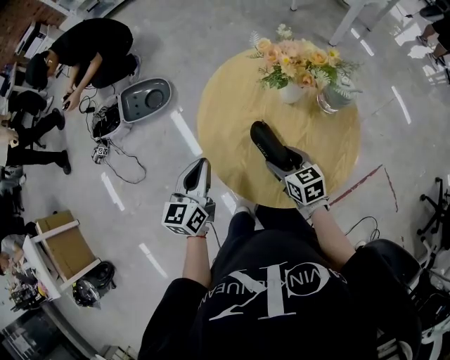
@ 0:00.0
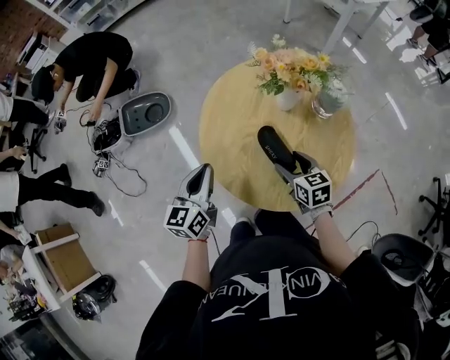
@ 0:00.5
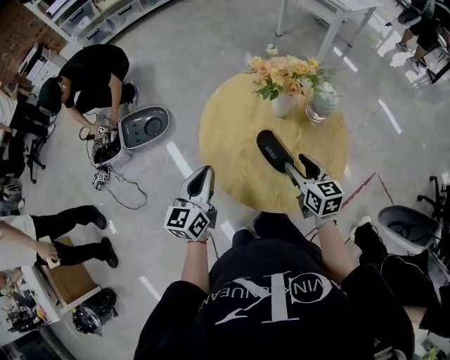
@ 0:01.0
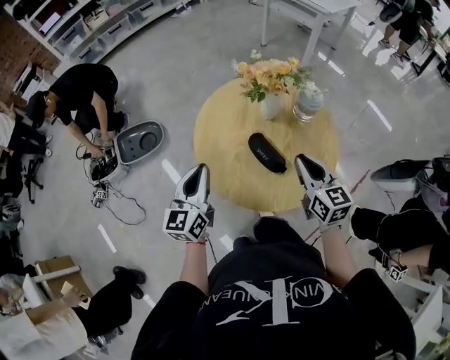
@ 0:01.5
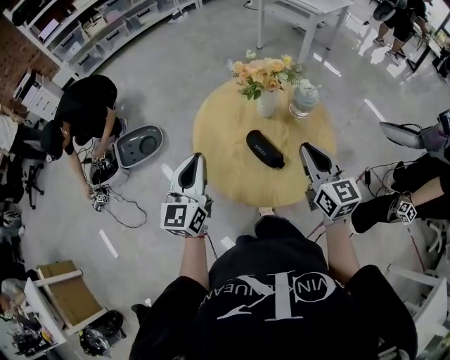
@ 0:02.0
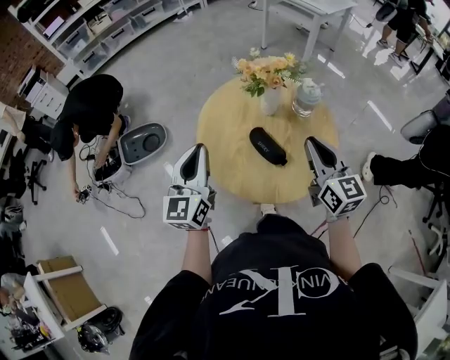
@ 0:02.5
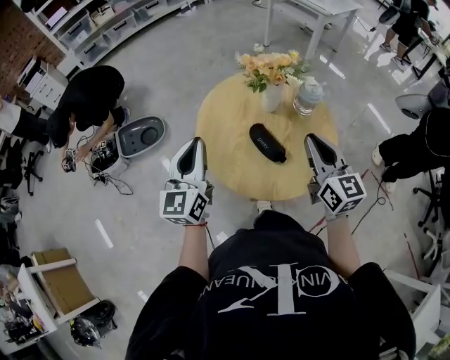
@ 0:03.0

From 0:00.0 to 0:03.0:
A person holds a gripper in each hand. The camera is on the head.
From 0:00.0 to 0:01.5: The right gripper goes roughly 20 cm upward and to the right, turns by roughly 30 degrees, and closes up. The left gripper moves upward, approximately 5 cm.
From 0:01.5 to 0:03.0: The two grippers go about 5 cm upward.

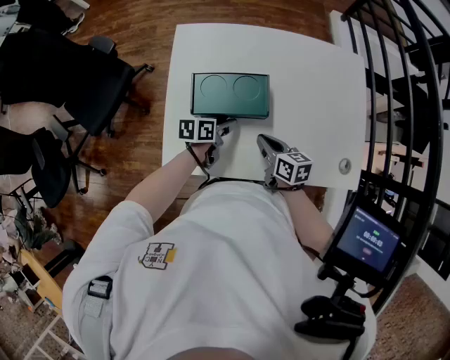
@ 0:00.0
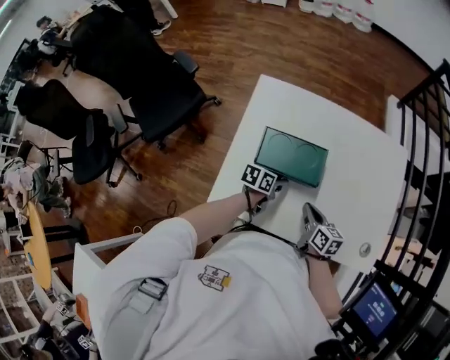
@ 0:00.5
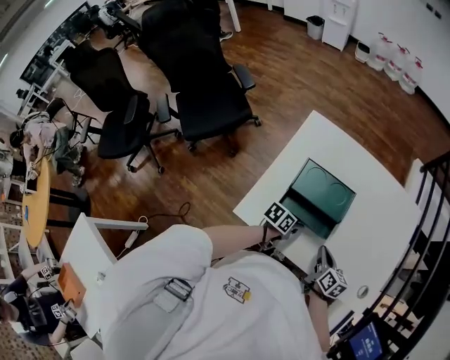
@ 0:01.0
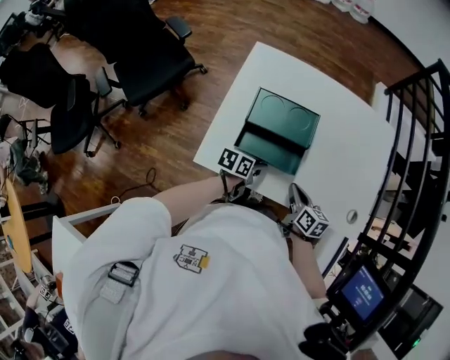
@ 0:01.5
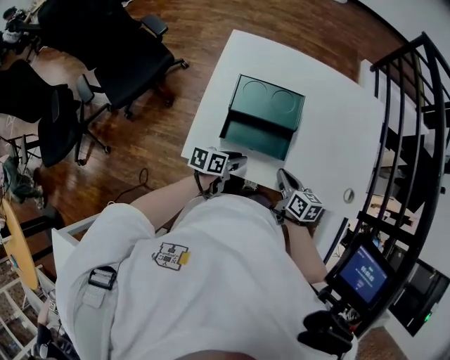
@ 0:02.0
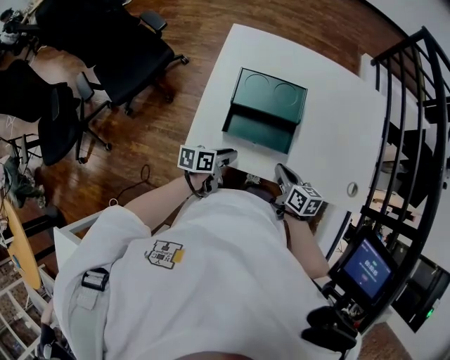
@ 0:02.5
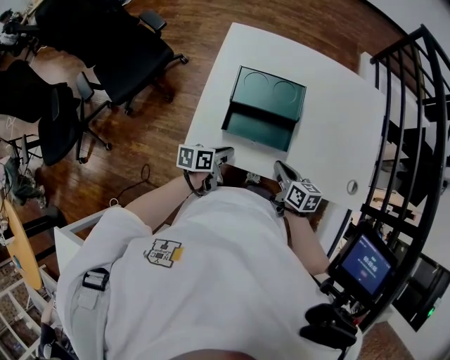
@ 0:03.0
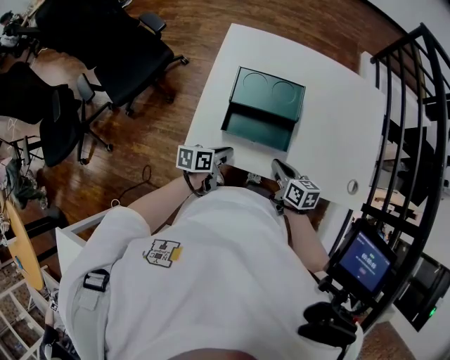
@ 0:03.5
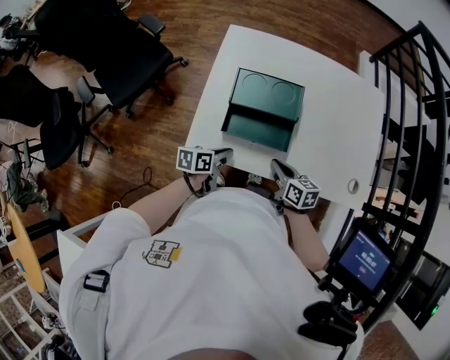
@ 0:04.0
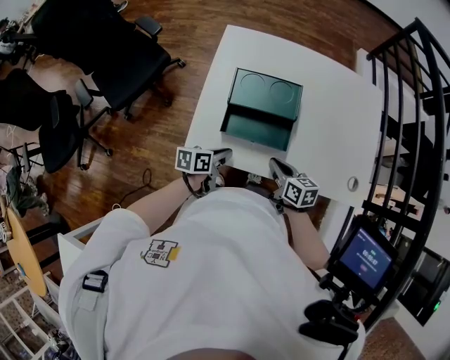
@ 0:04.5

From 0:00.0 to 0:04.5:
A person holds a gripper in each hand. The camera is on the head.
From 0:00.0 to 0:02.0: The right gripper shifts approximately 5 cm backward. The left gripper moves backward, some 10 cm.
From 0:02.0 to 0:04.5: The left gripper closes its fingers.

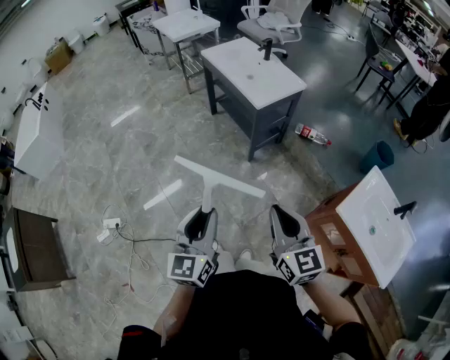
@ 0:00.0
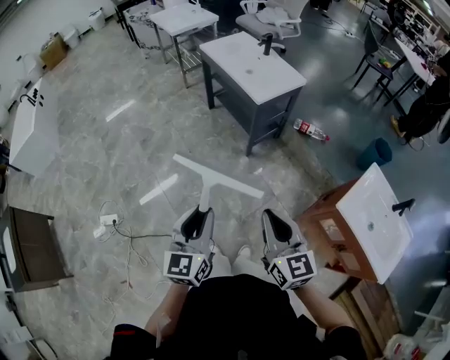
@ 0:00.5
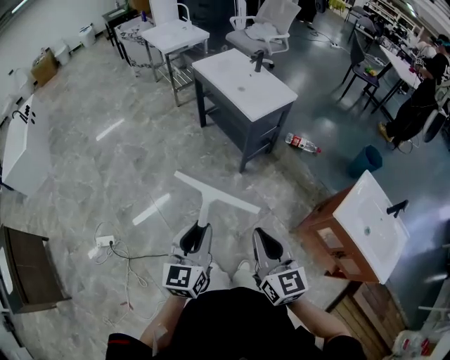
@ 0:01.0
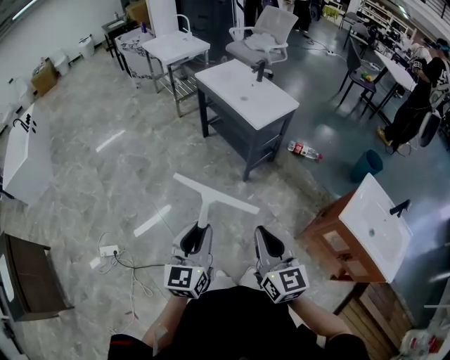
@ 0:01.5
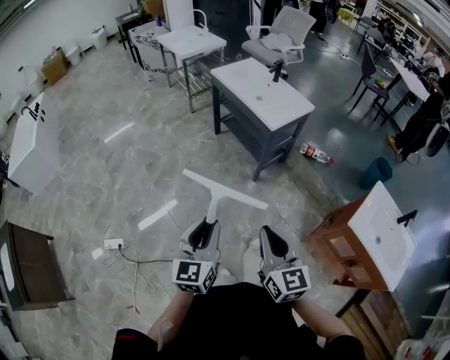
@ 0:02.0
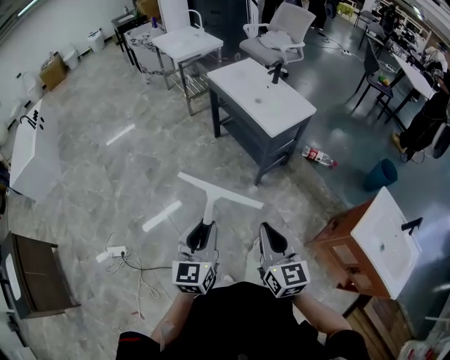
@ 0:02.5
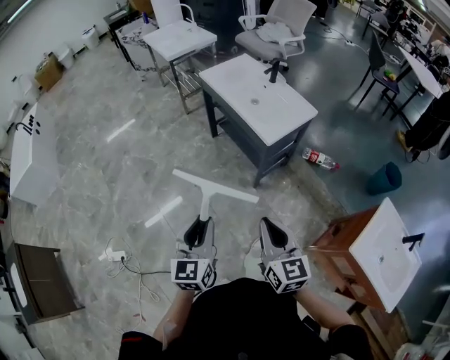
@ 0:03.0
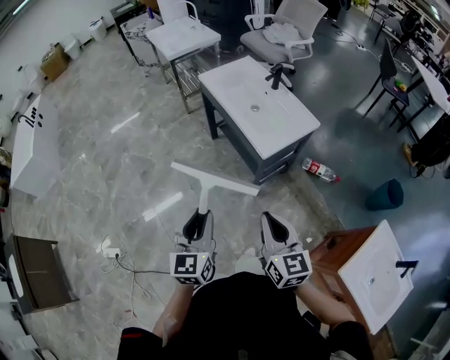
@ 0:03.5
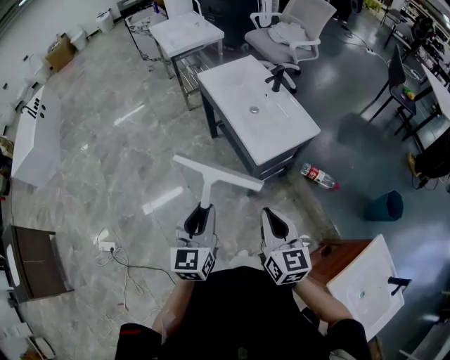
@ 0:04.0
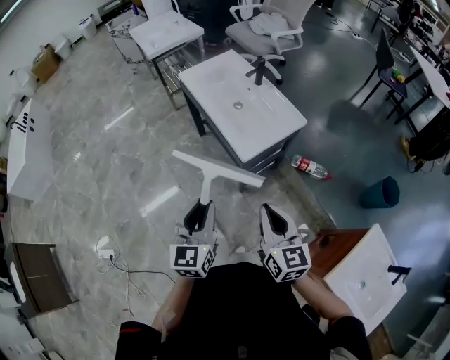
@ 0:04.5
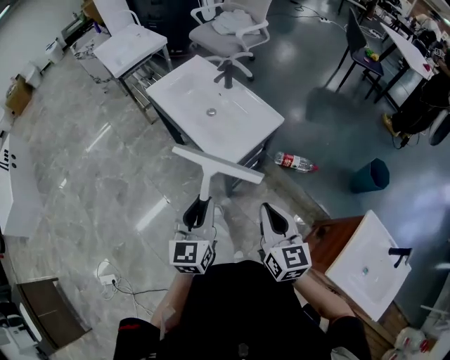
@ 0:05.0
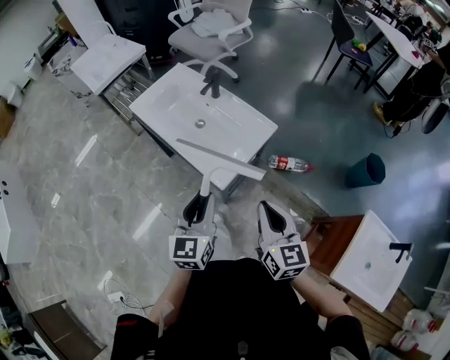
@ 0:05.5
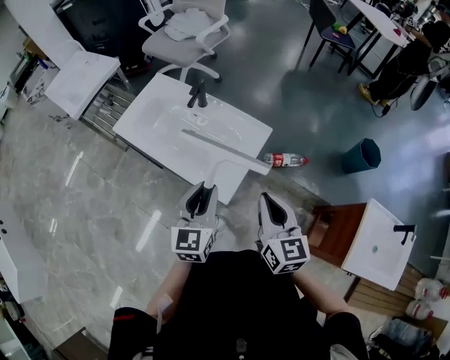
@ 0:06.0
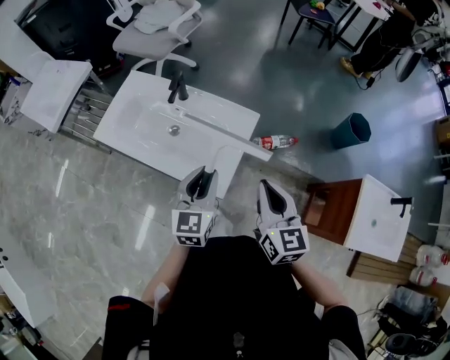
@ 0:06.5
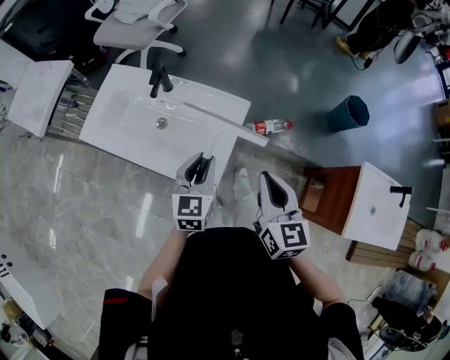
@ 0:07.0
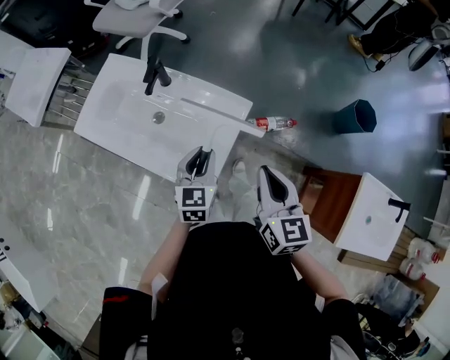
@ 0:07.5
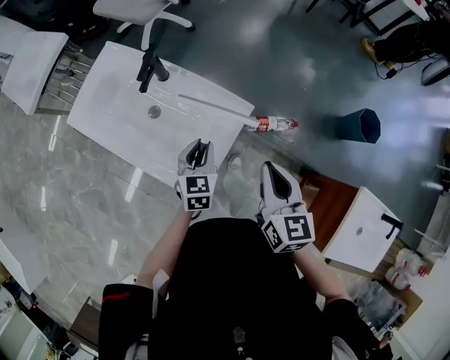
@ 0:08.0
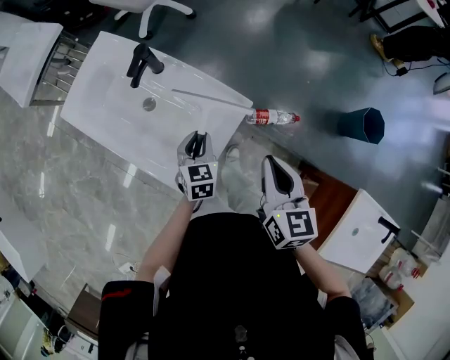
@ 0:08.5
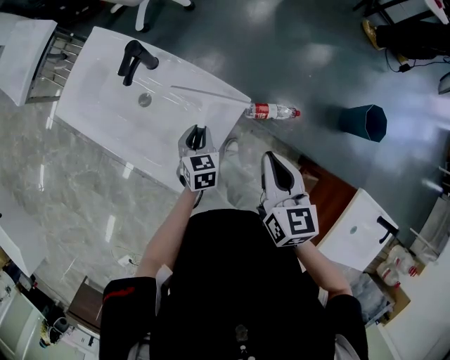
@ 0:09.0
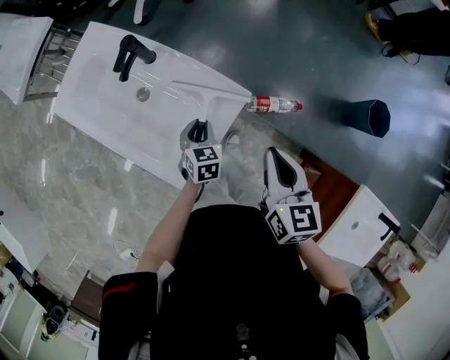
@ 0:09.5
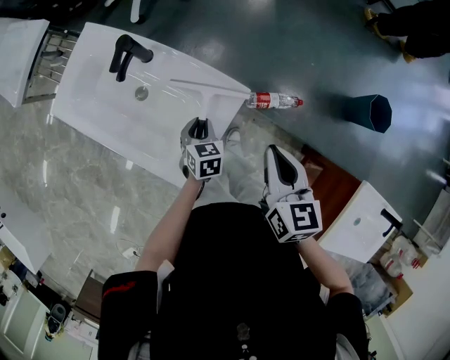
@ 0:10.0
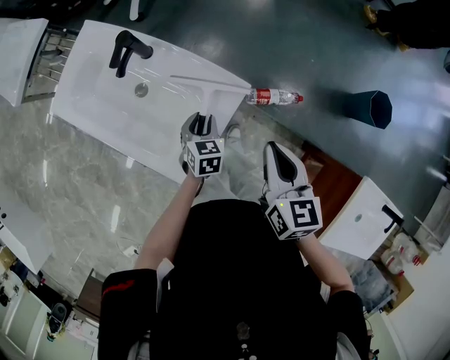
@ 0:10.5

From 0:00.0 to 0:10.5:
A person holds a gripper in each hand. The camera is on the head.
From 0:00.0 to 0:02.0: Both grippers travel together to the left, some 15 cm.
From 0:02.0 to 0:04.0: Both grippers move forward and to the right, approximately 35 cm.
From 0:04.0 to 0:06.5: The right gripper shifts by some 25 cm, and changes its angle by some 40 degrees; the left gripper moves roughly 40 cm, and changes its angle by roughly 40 degrees.
From 0:06.5 to 0:08.5: The left gripper travels downward and forward by approximately 25 cm, and rotates roughly 30 degrees, while the right gripper travels forward, to the right and downward by some 20 cm.
From 0:08.5 to 0:10.5: The left gripper shifts roughly 5 cm downward.

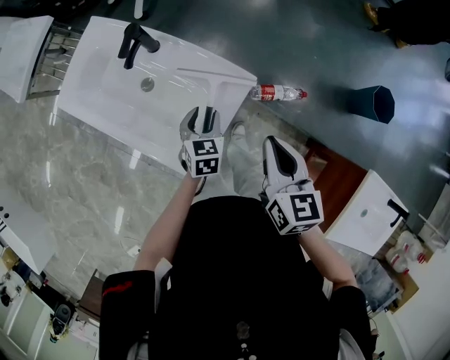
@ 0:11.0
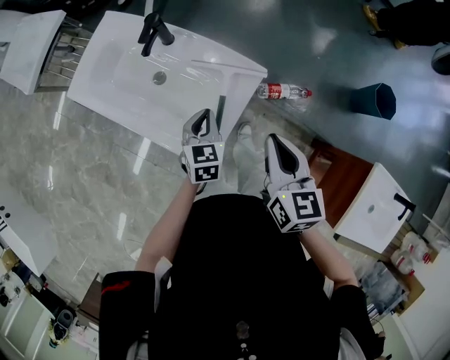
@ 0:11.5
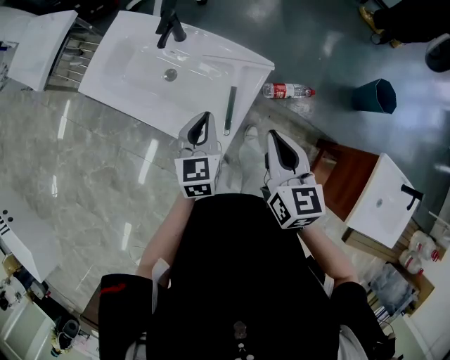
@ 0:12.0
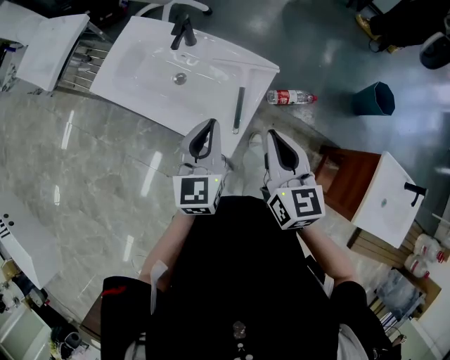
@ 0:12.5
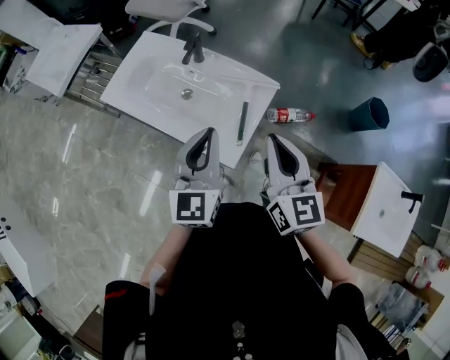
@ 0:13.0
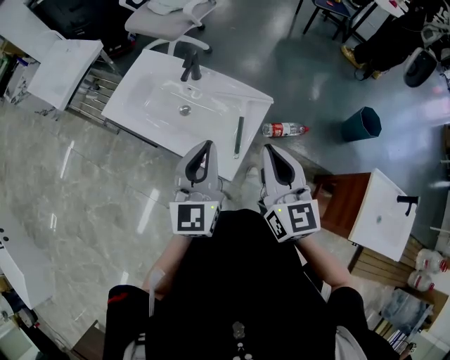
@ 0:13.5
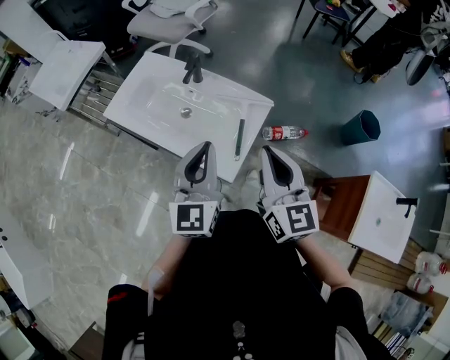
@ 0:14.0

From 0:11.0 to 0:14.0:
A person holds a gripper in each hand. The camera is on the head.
From 0:11.0 to 0:12.5: The left gripper travels upward and backward by roughly 25 cm, points its fingers some 30 degrees further upward, and closes; the right gripper travels to the left, backward and upward by some 15 cm.
From 0:12.5 to 0:14.0: The grippers both shift upward by roughly 10 cm.

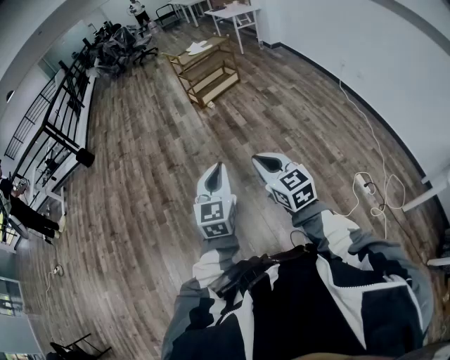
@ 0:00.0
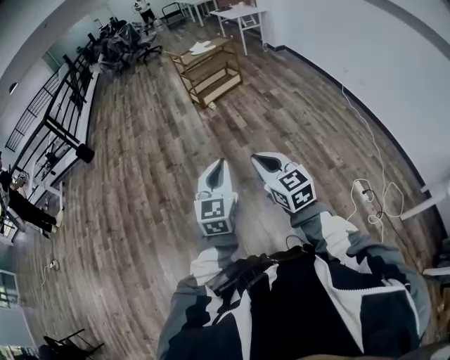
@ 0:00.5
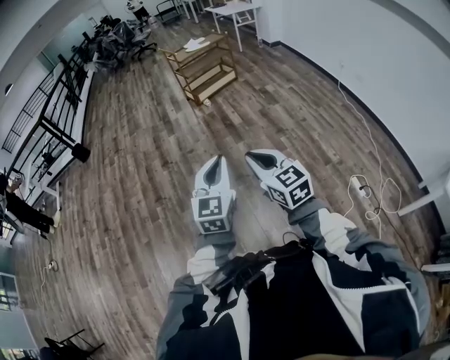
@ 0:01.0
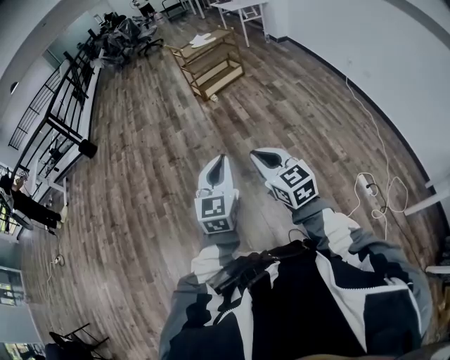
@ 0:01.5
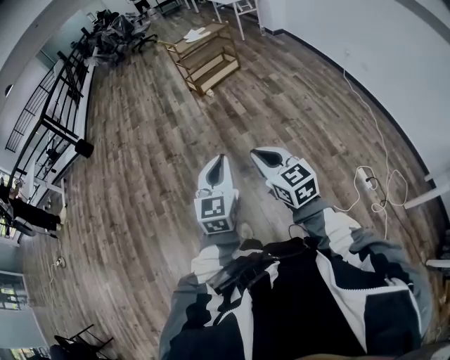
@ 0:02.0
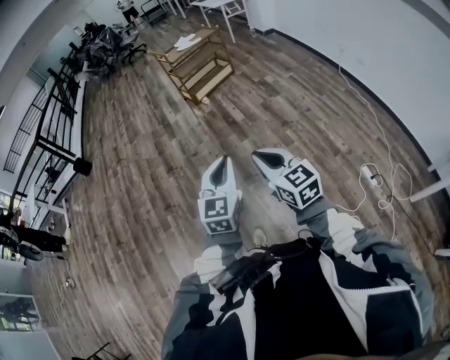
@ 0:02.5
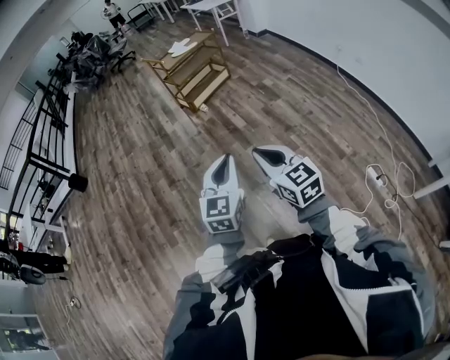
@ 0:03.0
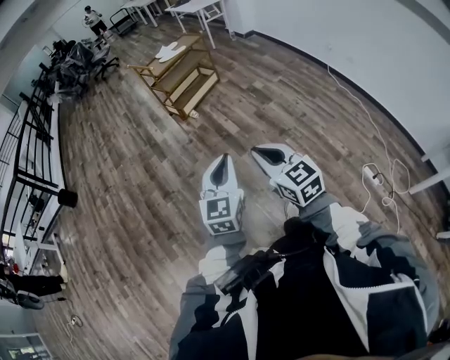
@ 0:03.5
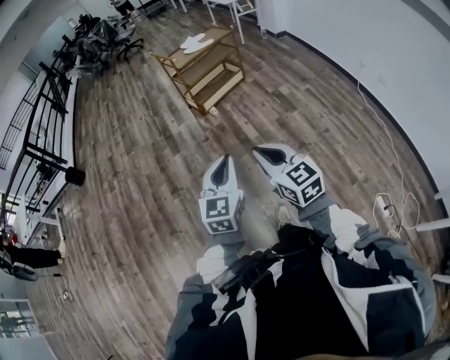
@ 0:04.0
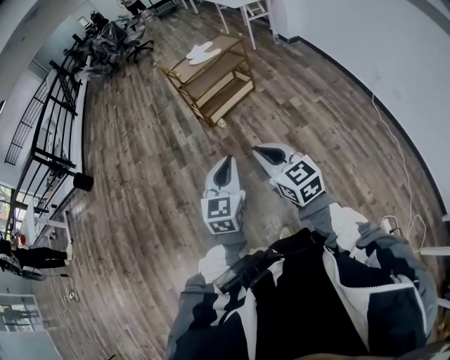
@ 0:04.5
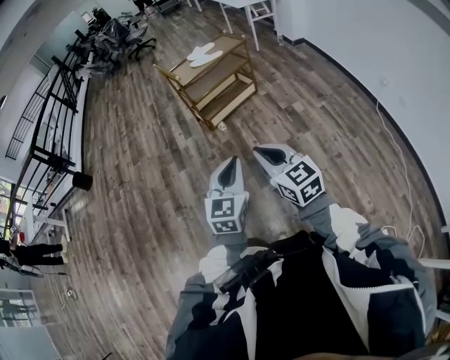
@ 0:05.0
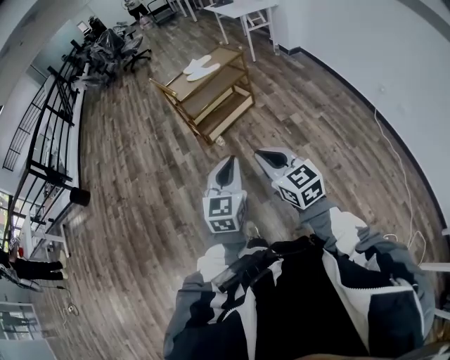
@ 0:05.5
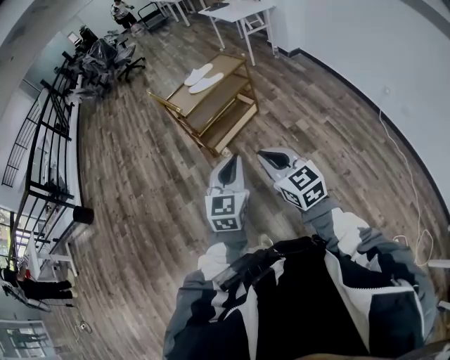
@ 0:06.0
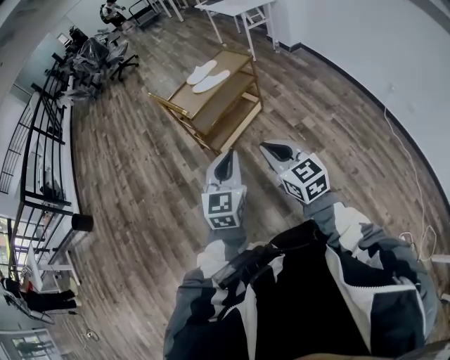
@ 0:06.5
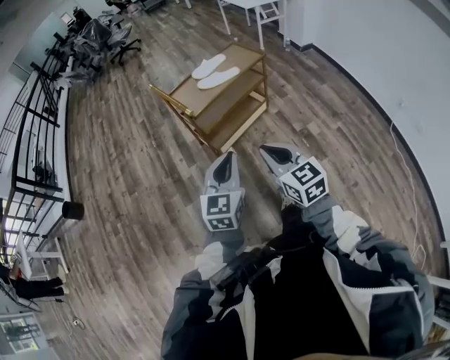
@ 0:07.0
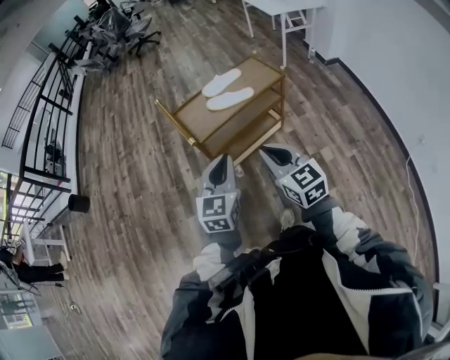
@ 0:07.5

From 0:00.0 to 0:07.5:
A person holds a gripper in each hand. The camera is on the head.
From 0:00.0 to 0:02.0: The grippers make only small movements.
From 0:02.0 to 0:04.0: Both grippers move forward, approximately 40 cm.
From 0:04.0 to 0:05.5: Both grippers move forward and to the right, about 30 cm.
From 0:05.5 to 0:07.5: Both grippers are carried forward, some 50 cm.
